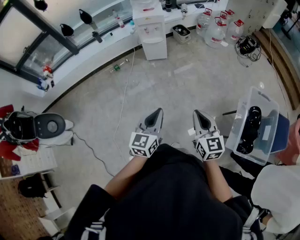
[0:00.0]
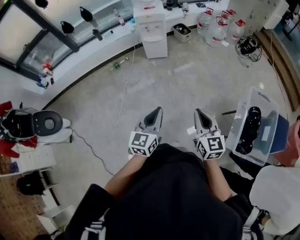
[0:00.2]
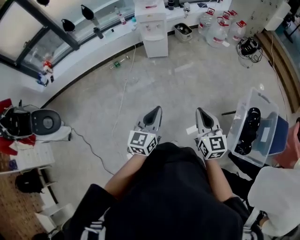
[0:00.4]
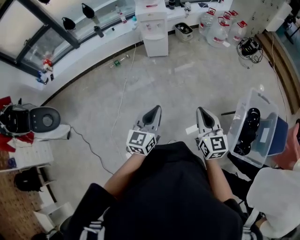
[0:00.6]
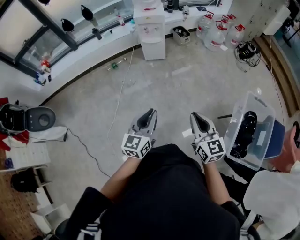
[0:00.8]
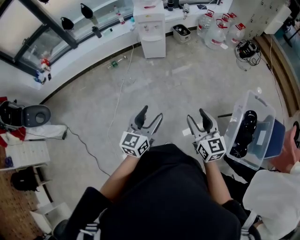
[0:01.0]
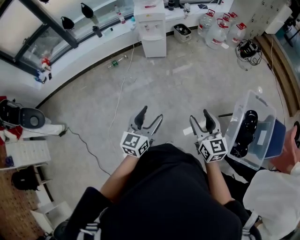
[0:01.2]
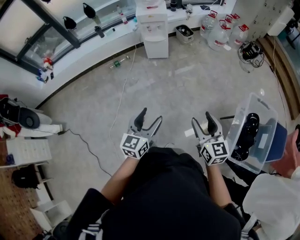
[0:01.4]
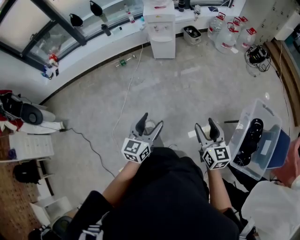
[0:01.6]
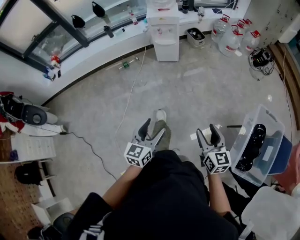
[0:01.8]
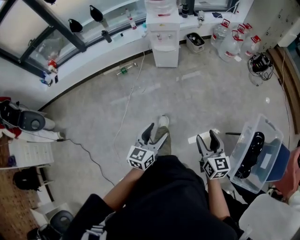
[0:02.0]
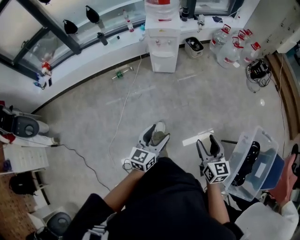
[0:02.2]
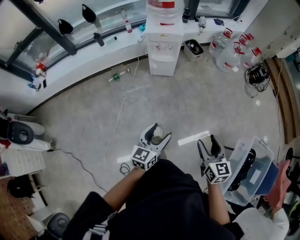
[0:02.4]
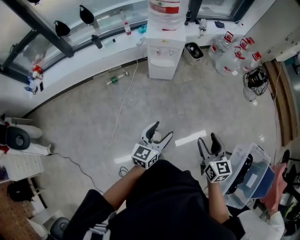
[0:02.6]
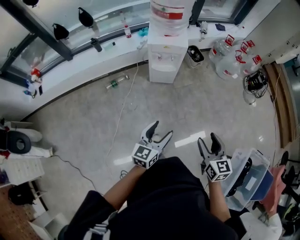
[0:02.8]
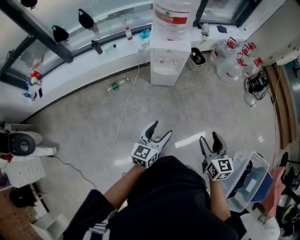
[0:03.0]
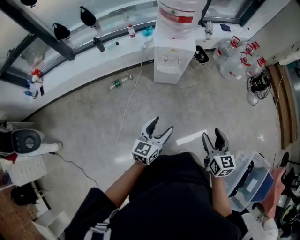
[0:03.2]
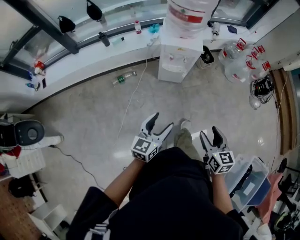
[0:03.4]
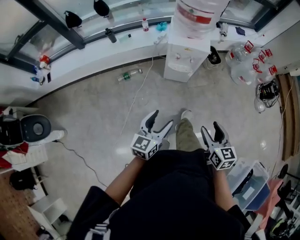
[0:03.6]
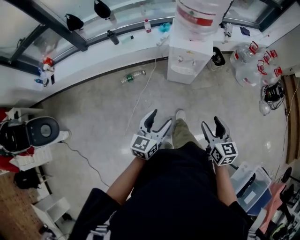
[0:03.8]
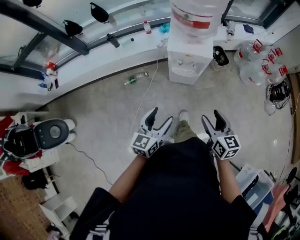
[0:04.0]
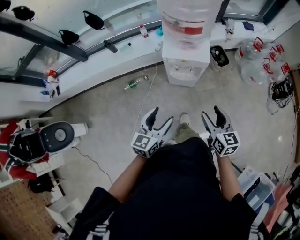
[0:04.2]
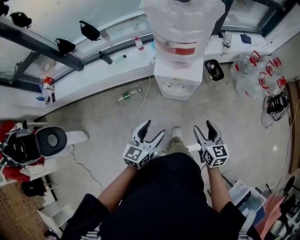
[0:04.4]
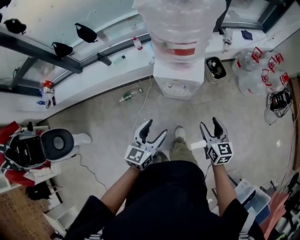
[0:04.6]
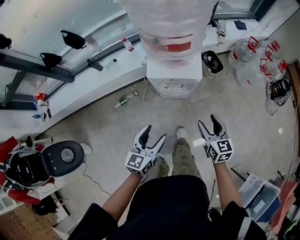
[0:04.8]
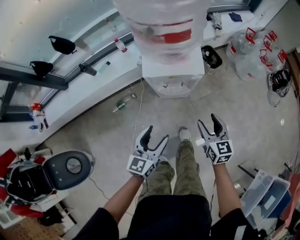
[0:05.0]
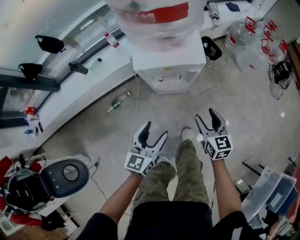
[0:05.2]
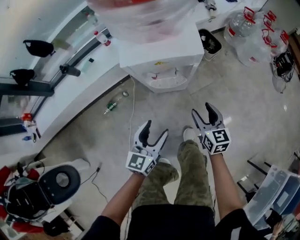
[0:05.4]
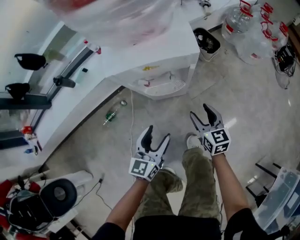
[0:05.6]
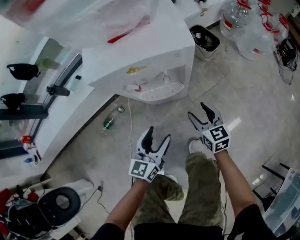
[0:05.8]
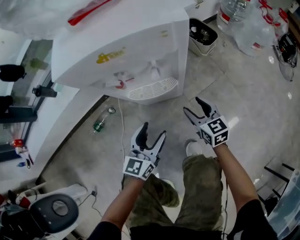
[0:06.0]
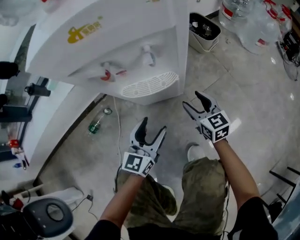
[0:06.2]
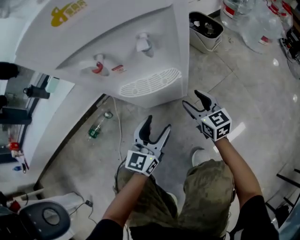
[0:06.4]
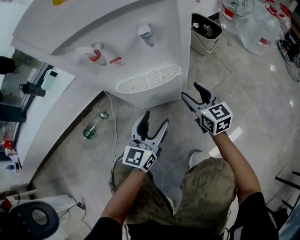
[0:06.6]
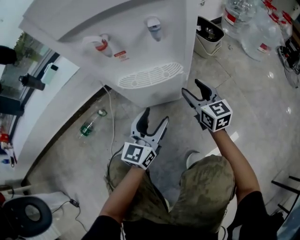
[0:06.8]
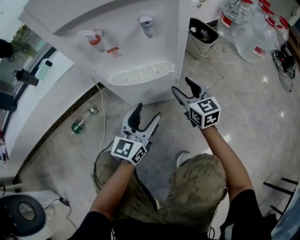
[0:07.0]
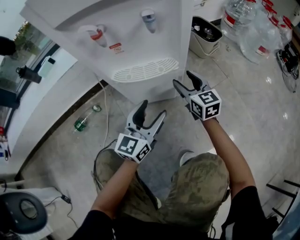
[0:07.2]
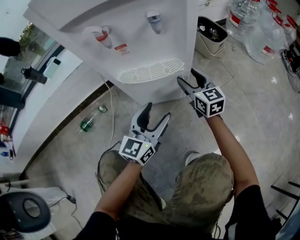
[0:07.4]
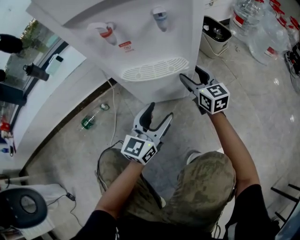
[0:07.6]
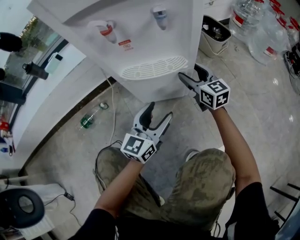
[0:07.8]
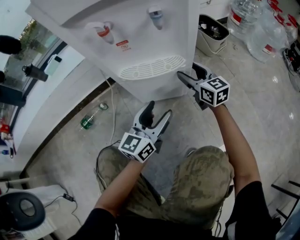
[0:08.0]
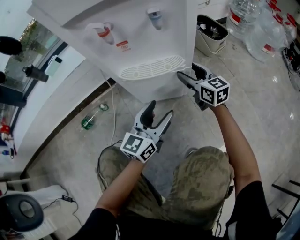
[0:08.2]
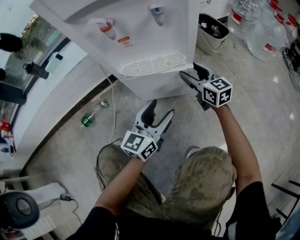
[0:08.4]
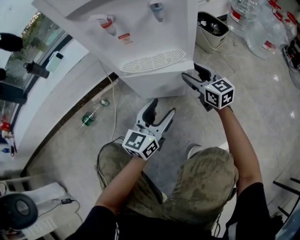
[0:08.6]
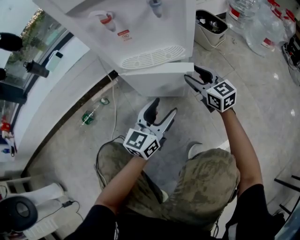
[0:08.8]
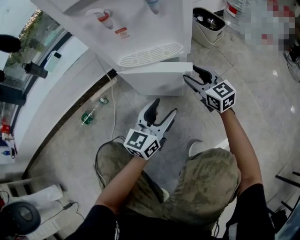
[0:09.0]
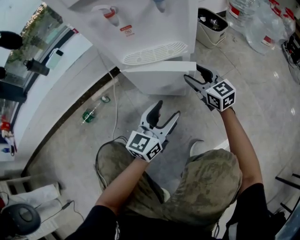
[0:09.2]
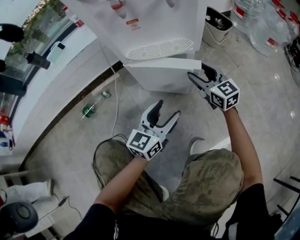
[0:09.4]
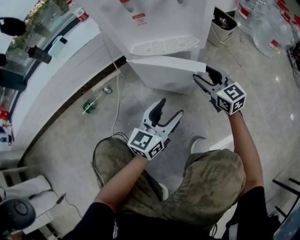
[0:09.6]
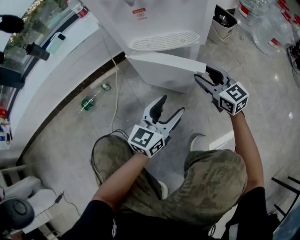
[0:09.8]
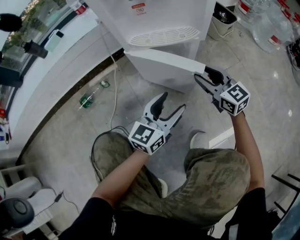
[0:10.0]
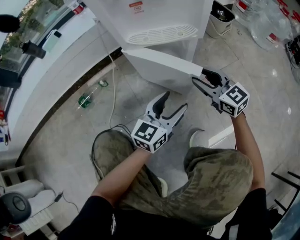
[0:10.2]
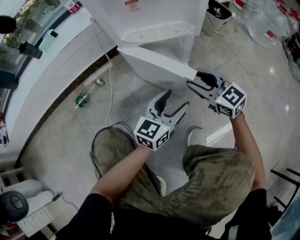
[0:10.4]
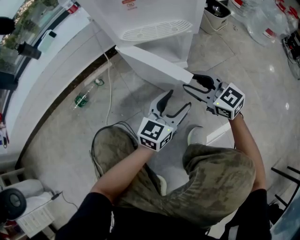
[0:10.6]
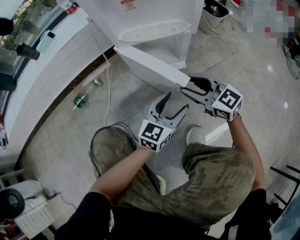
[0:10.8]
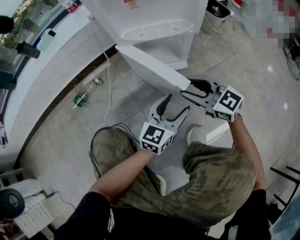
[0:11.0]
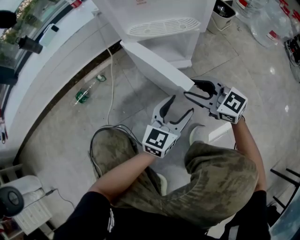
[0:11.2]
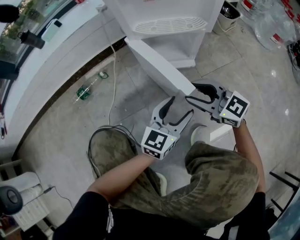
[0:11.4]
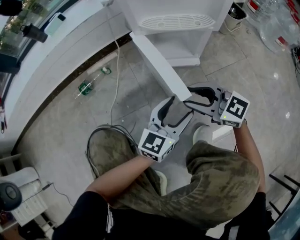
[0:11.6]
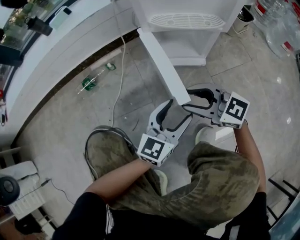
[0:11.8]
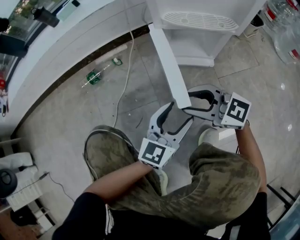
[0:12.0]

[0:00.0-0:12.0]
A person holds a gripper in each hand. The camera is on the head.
0:00.0 to 0:01.6: The left gripper opens; the right gripper changes place by roughly 5 cm, and opens up.
0:01.6 to 0:03.0: Both grippers are carried forward, roughly 40 cm.
0:03.0 to 0:04.4: Both grippers travel together forward, roughly 25 cm.
0:04.4 to 0:06.0: Both grippers travel together downward, approximately 50 cm.
0:06.0 to 0:07.6: The right gripper heads forward and downward, covering roughly 15 cm, while the left gripper shifts roughly 15 cm downward.
0:07.6 to 0:09.0: The right gripper moves backward, approximately 5 cm.
0:09.0 to 0:10.4: The right gripper goes approximately 10 cm backward. Meanwhile the left gripper ends up roughly 5 cm from where it was.
0:10.4 to 0:12.0: The left gripper shifts some 10 cm to the left. The right gripper shifts about 15 cm to the left and backward, and changes its angle by about 30 degrees.

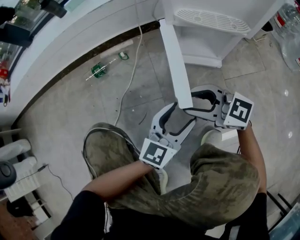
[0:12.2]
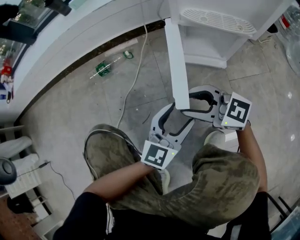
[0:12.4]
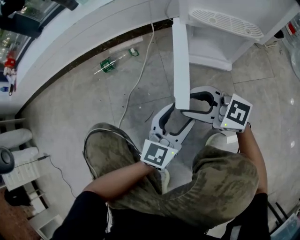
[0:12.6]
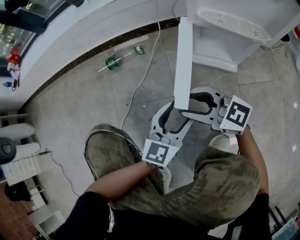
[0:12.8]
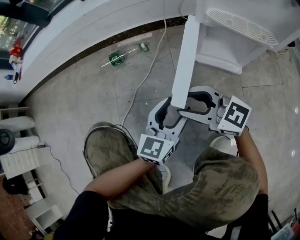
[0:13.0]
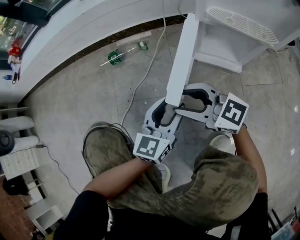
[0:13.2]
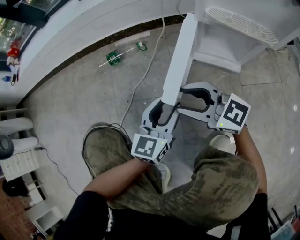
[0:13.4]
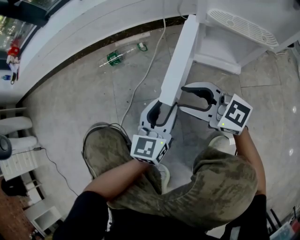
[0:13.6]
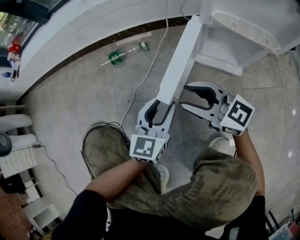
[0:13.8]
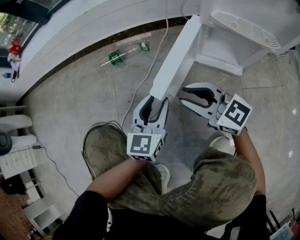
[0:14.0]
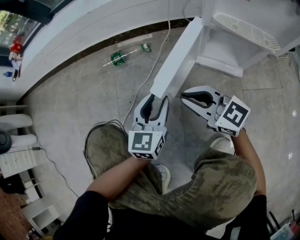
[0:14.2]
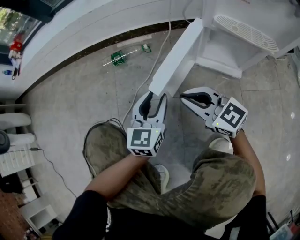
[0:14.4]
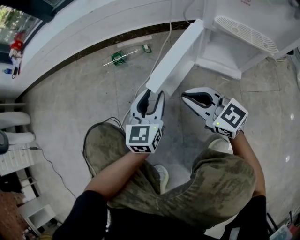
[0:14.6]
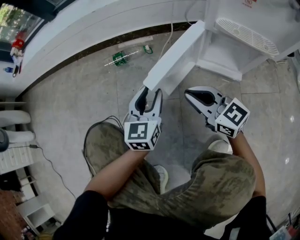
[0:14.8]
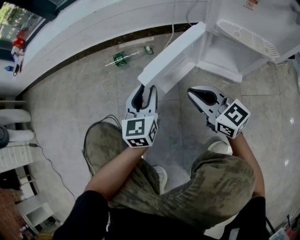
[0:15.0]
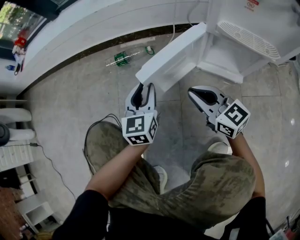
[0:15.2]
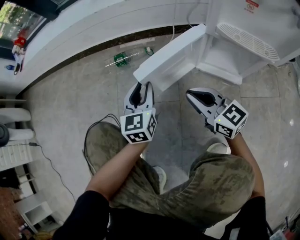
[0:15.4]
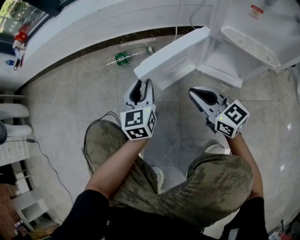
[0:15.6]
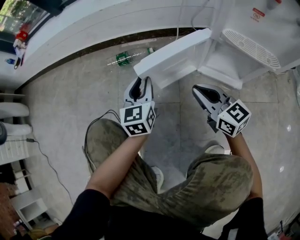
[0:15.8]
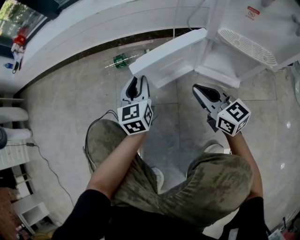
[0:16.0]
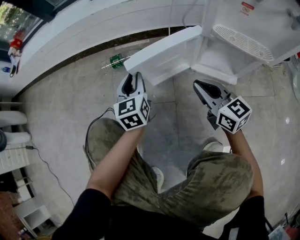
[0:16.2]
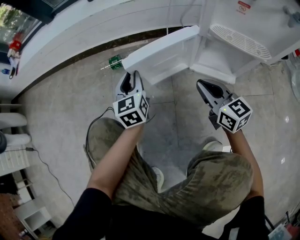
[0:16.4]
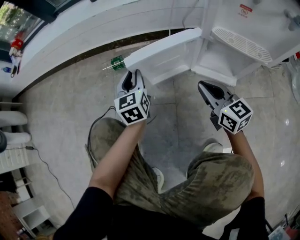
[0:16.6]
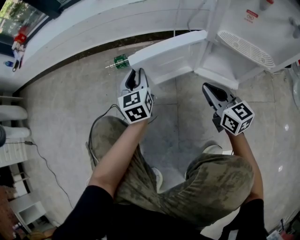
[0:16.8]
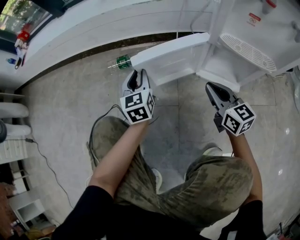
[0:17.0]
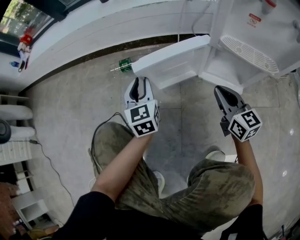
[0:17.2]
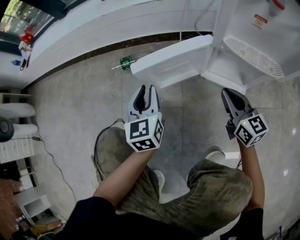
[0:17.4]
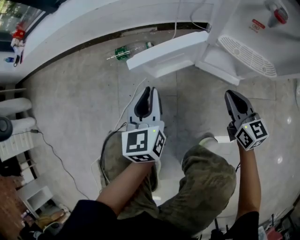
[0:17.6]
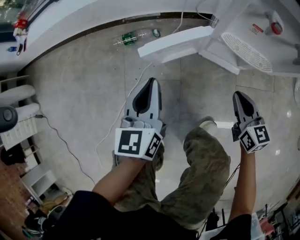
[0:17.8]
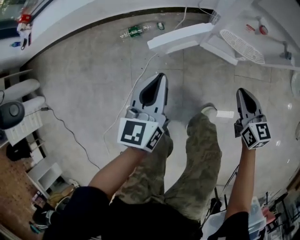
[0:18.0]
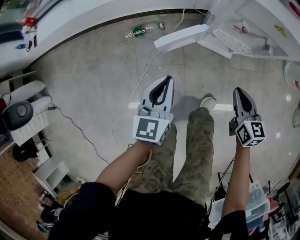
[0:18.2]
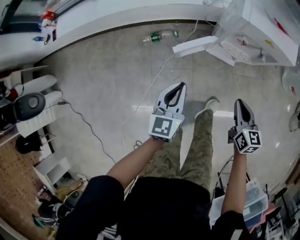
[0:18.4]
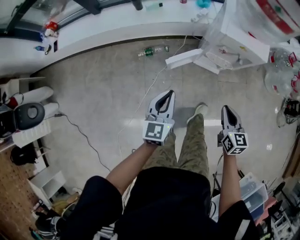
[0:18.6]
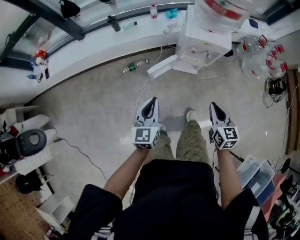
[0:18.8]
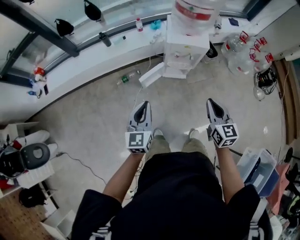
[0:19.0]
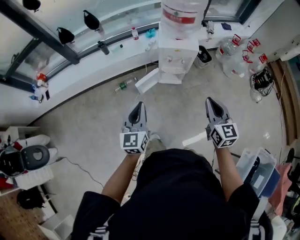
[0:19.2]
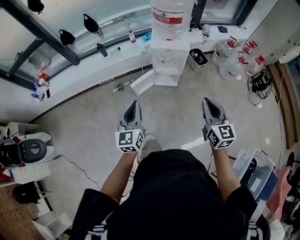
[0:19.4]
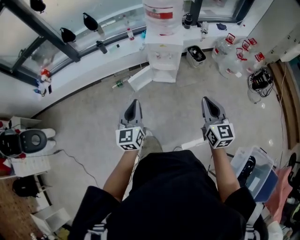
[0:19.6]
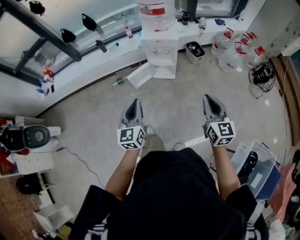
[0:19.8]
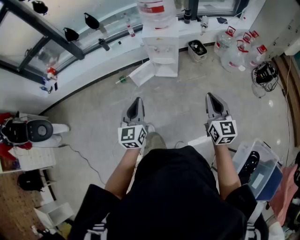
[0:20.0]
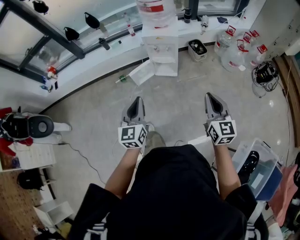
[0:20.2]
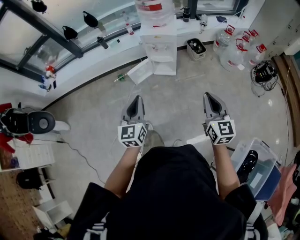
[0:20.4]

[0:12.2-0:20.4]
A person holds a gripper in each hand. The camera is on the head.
0:12.2 to 0:13.8: The right gripper shifts approximately 10 cm to the left and forward; the left gripper shifts approximately 15 cm to the left and forward, turns by some 20 degrees, and closes up.
0:13.8 to 0:15.4: The left gripper shifts roughly 10 cm forward and to the left, and swivels approximately 20 degrees, while the right gripper closes its fingers.
0:15.4 to 0:17.2: The right gripper moves to the right, some 10 cm, and turns by approximately 20 degrees.
0:17.2 to 0:18.8: Both grippers move upward, some 60 cm. The left gripper rotates approximately 30 degrees. Meanwhile the right gripper swivels roughly 30 degrees.
0:18.8 to 0:20.4: The right gripper travels to the right, backward and upward by some 40 cm; the left gripper is displaced backward, to the right and upward by some 35 cm.

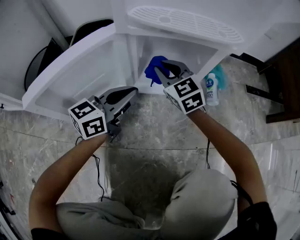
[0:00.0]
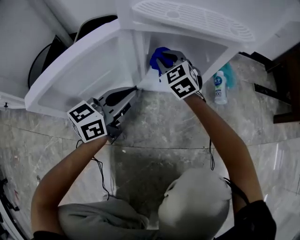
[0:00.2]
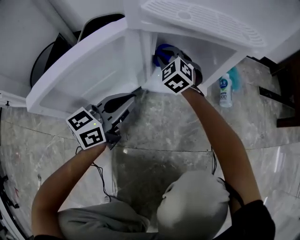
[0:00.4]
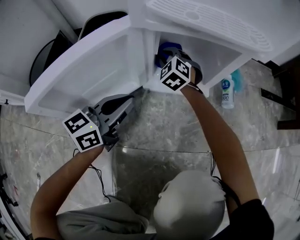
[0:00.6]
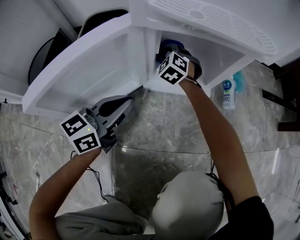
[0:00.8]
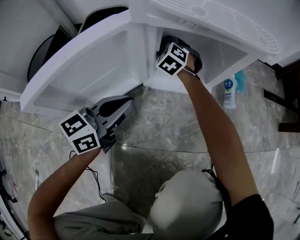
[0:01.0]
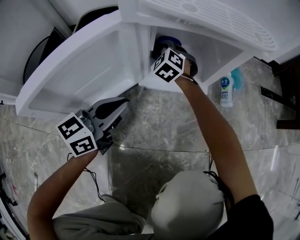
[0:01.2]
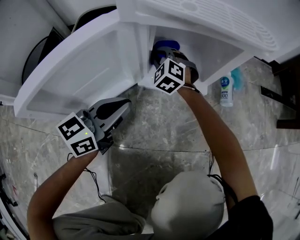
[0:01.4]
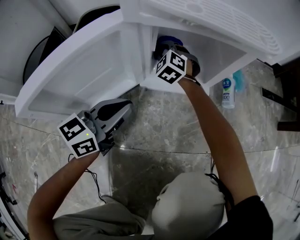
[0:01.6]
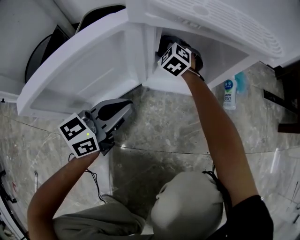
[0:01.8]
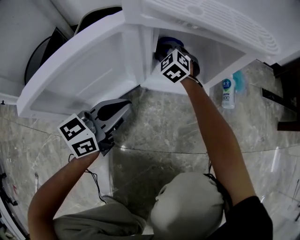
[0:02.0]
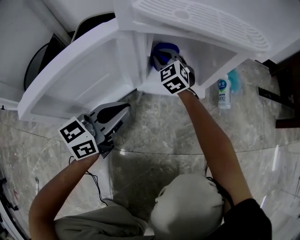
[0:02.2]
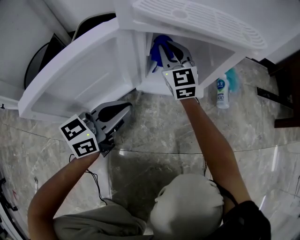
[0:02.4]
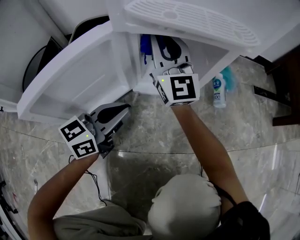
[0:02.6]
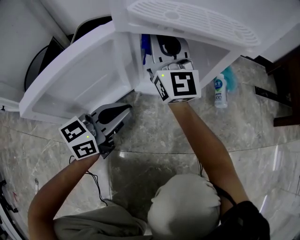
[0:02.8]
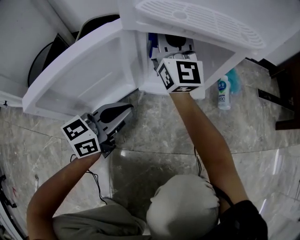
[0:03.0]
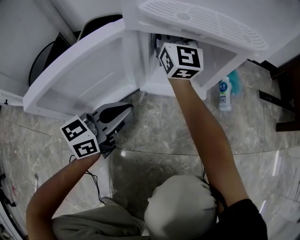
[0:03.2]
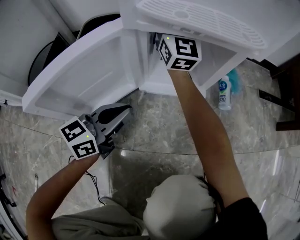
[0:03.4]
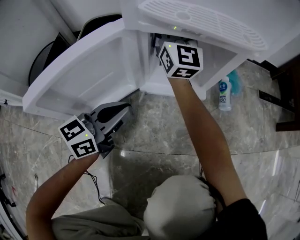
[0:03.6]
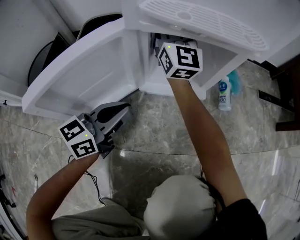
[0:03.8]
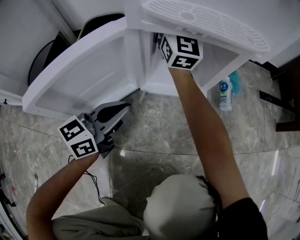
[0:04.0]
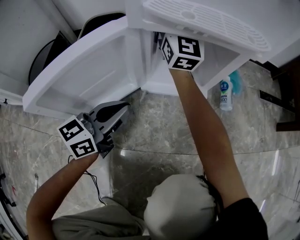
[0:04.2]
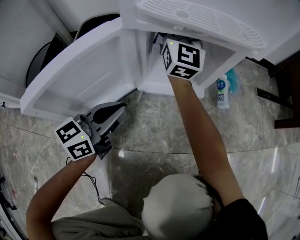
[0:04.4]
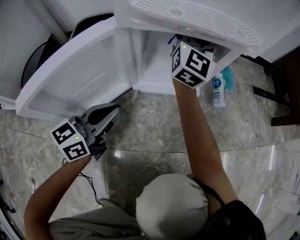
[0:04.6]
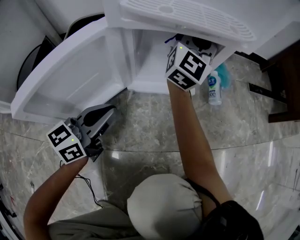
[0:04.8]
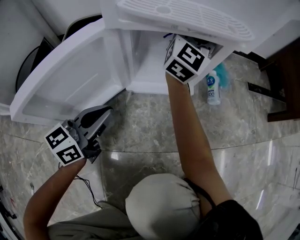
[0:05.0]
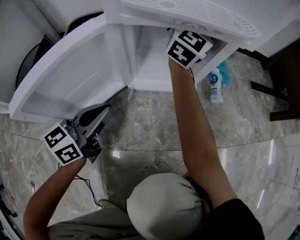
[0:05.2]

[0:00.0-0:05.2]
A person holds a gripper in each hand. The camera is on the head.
0:00.0 to 0:01.8: The right gripper goes forward and backward, about 10 cm each way, reversing 2 times, and changes its angle by approximately 30 degrees, while the left gripper moves some 5 cm.
0:01.8 to 0:03.4: The right gripper travels upward by approximately 25 cm, and angles its fingers upward, by about 60 degrees.
0:03.4 to 0:05.2: The right gripper goes about 15 cm to the right, and rotates approximately 40 degrees.
